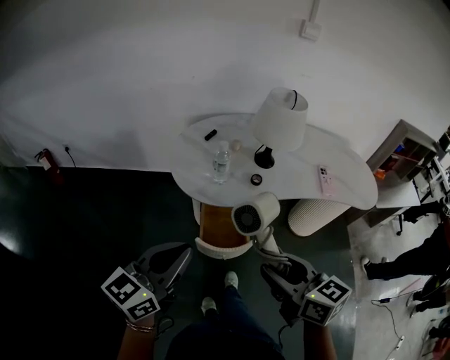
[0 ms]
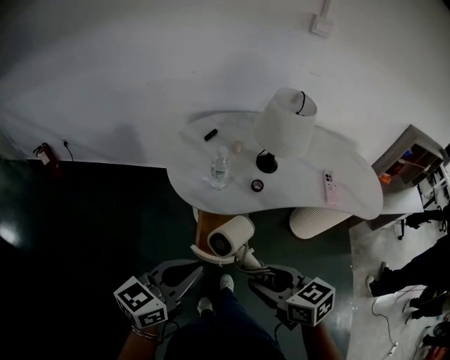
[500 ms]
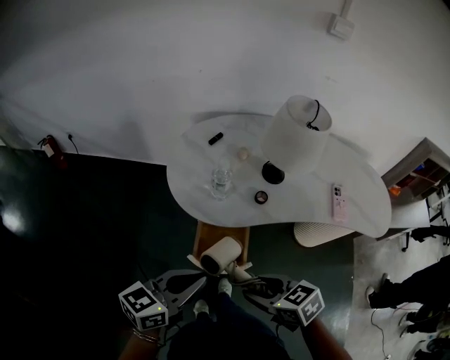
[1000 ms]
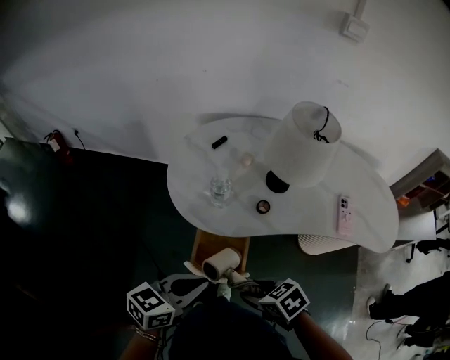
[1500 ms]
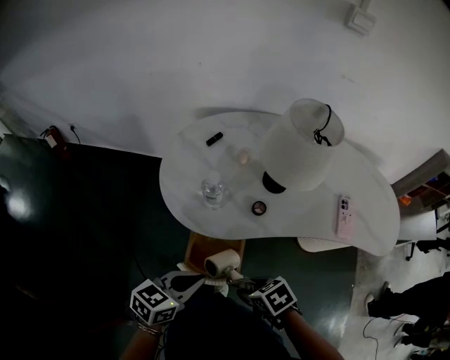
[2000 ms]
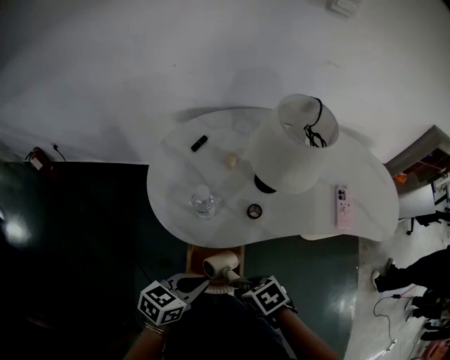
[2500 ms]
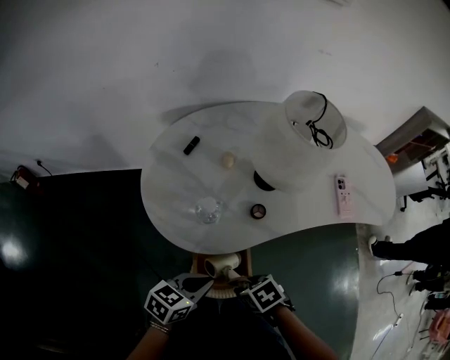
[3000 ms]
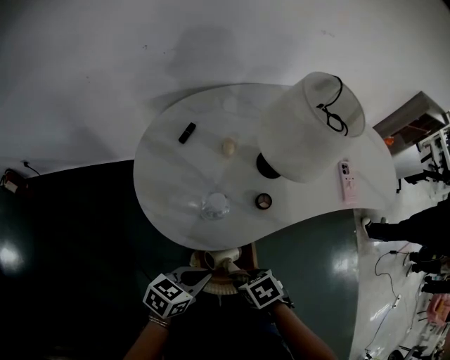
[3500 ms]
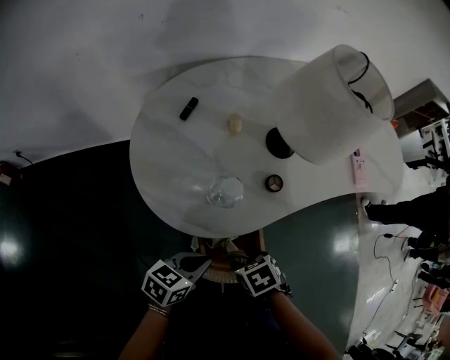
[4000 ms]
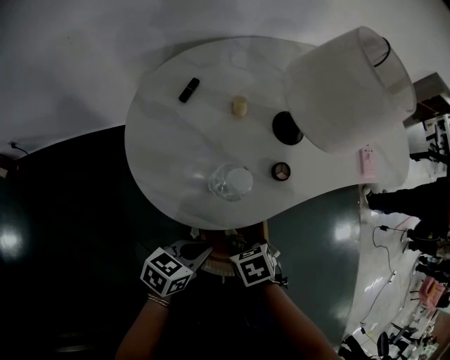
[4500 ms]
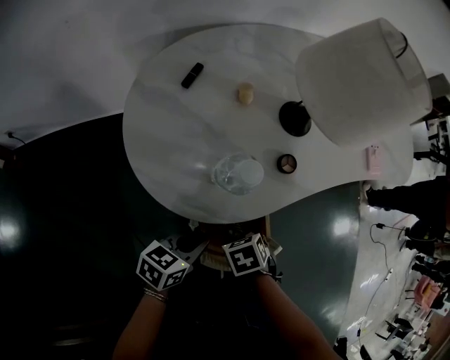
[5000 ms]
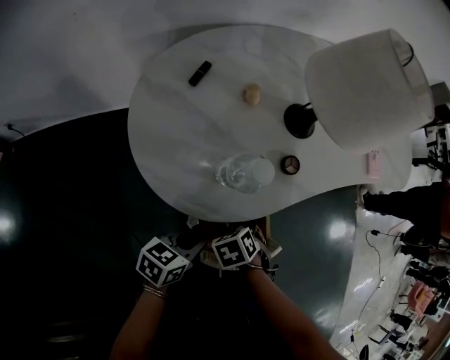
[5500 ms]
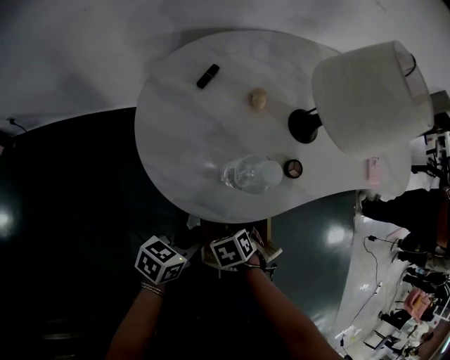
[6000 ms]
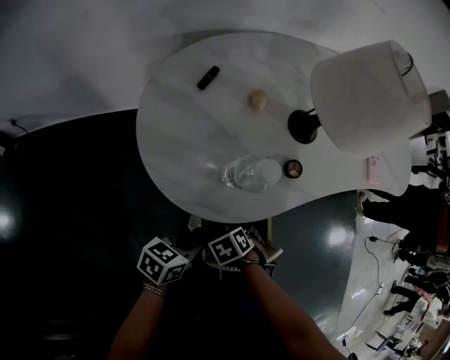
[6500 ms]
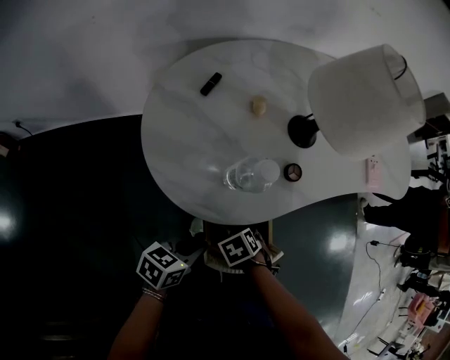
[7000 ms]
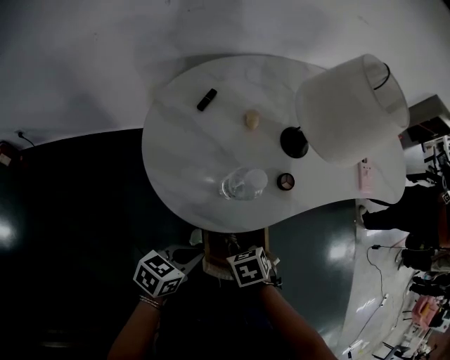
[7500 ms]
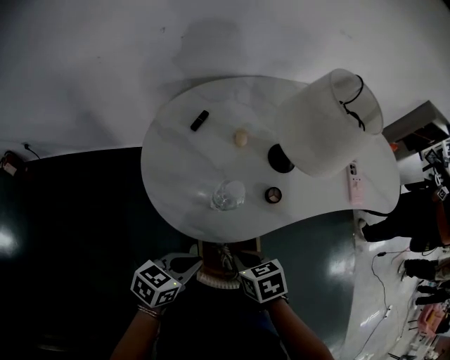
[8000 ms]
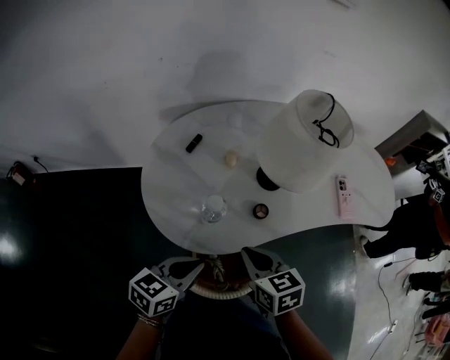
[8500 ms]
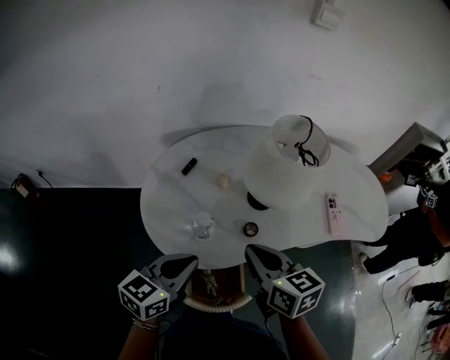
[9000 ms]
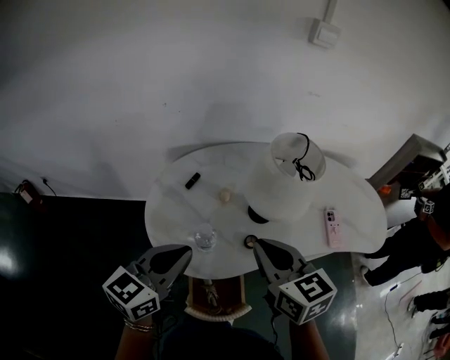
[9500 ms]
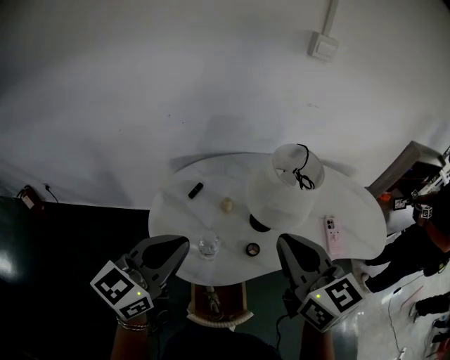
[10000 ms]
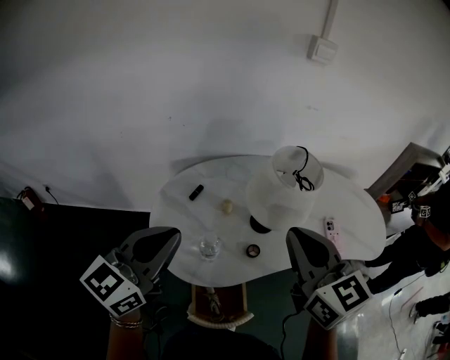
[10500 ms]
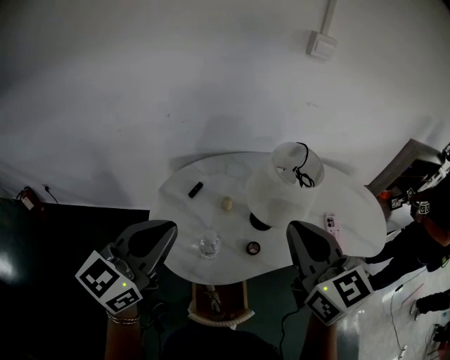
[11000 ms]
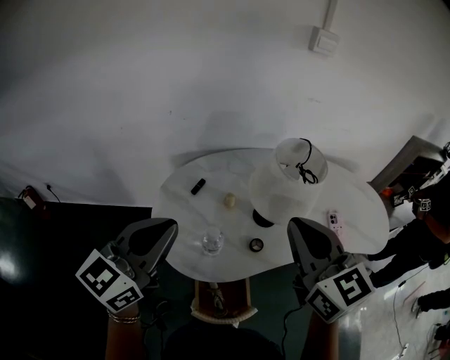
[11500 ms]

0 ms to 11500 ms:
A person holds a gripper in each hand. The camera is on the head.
0 ms to 2000 ms: Both grippers move downward, approximately 20 cm. The right gripper tips its fingers downward by approximately 40 degrees; the left gripper rotates some 30 degrees.
2000 ms to 4000 ms: The left gripper travels downward by some 10 cm, and turns by about 30 degrees, while the right gripper moves roughly 15 cm, and swivels roughly 30 degrees.
4000 ms to 6000 ms: The left gripper shifts by some 5 cm, while the right gripper heads downward, covering roughly 10 cm.
6000 ms to 7500 ms: The right gripper travels upward by about 5 cm, and closes.
7500 ms to 9500 ms: Both grippers travel together upward, some 35 cm. The left gripper turns by some 40 degrees; the right gripper tilts its fingers roughly 60 degrees upward.
9500 ms to 11500 ms: The two grippers go some 10 cm upward.

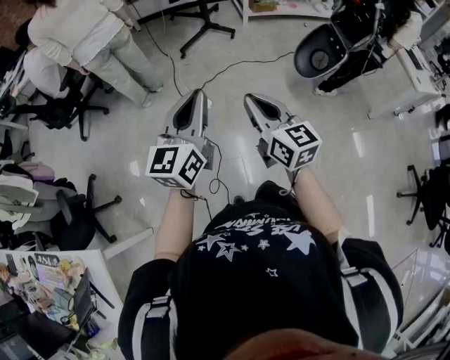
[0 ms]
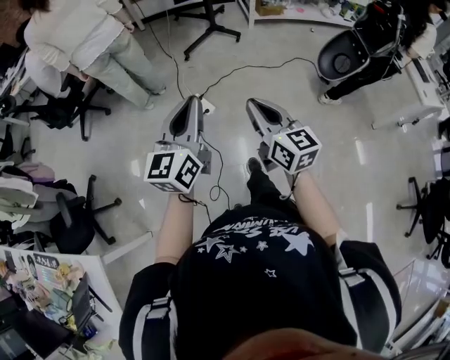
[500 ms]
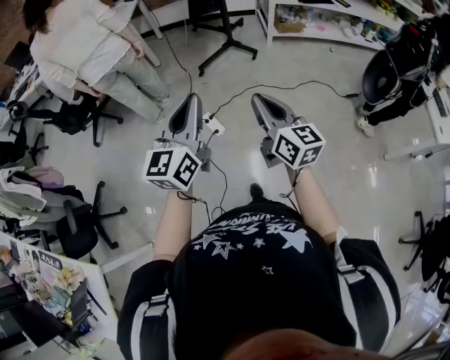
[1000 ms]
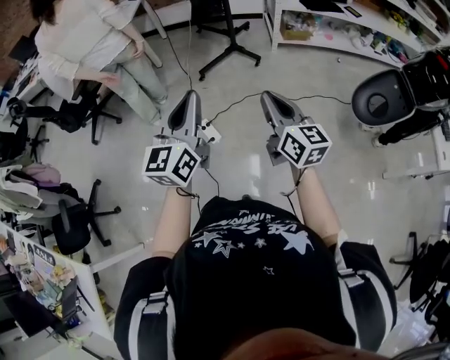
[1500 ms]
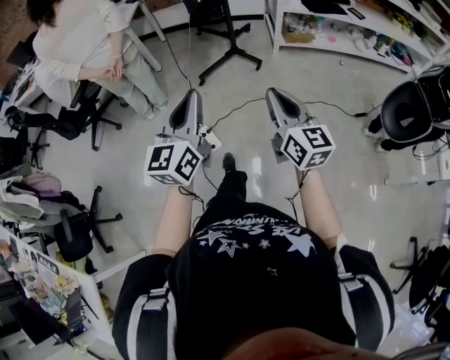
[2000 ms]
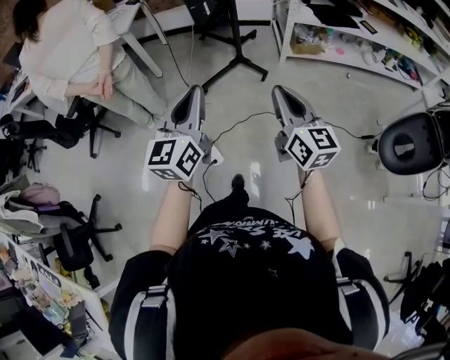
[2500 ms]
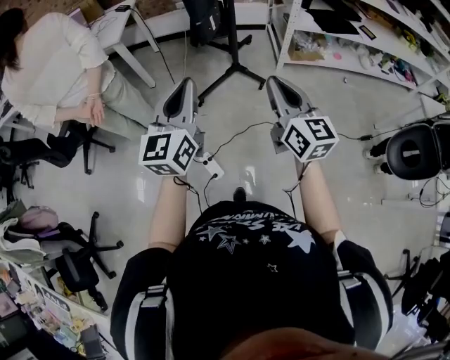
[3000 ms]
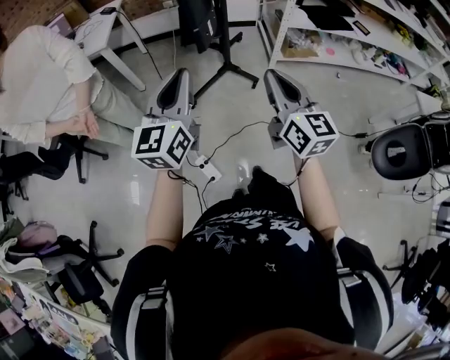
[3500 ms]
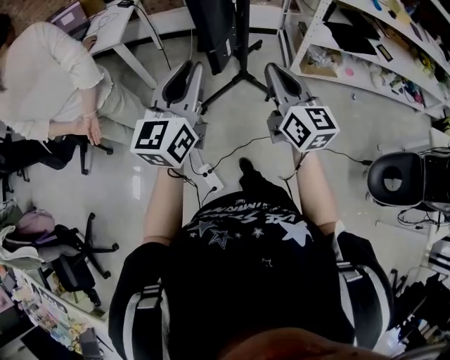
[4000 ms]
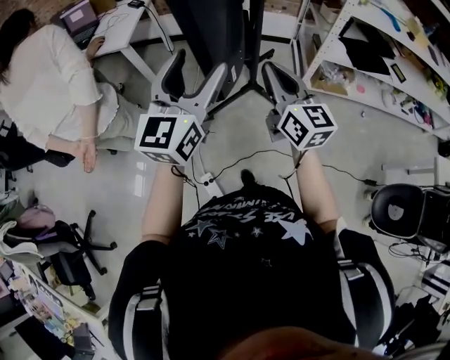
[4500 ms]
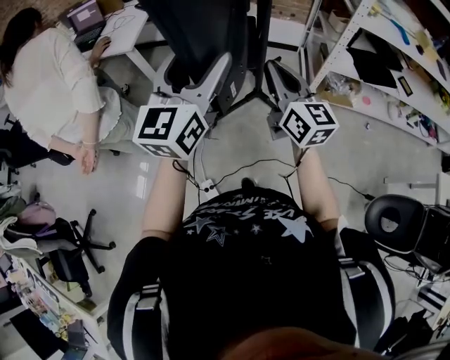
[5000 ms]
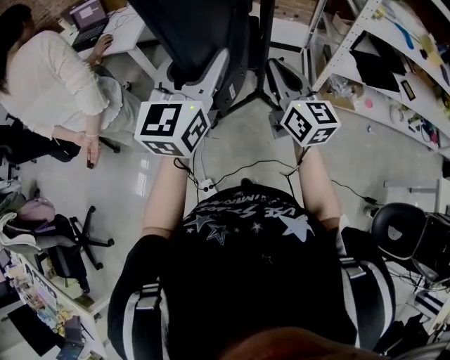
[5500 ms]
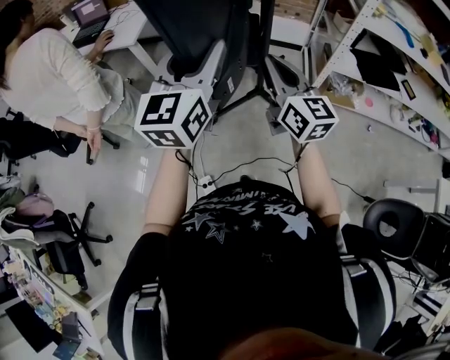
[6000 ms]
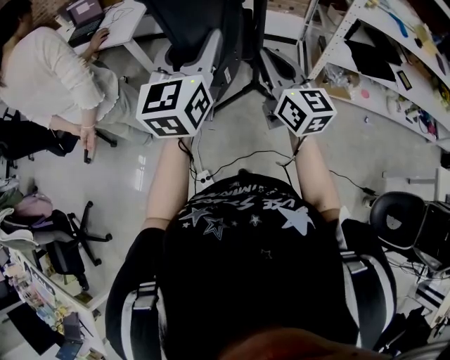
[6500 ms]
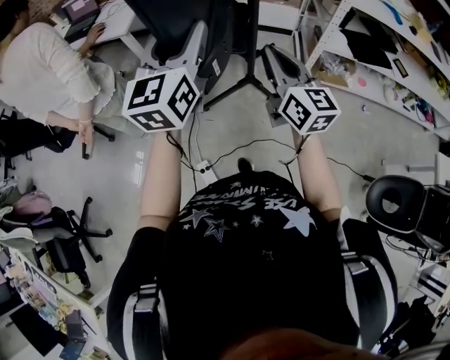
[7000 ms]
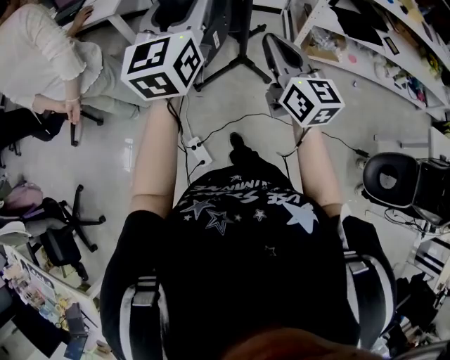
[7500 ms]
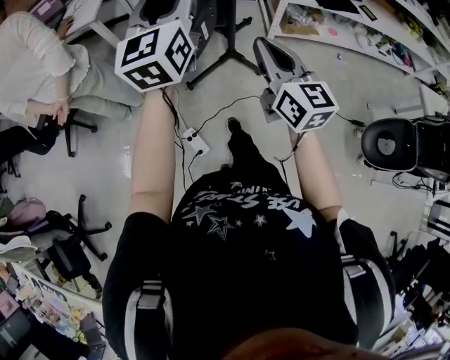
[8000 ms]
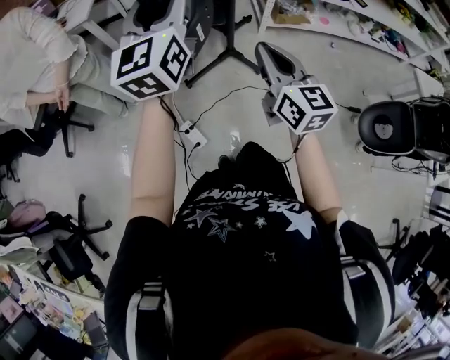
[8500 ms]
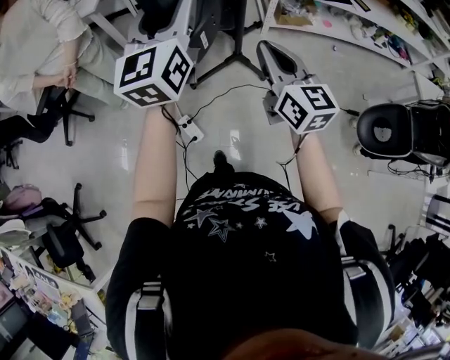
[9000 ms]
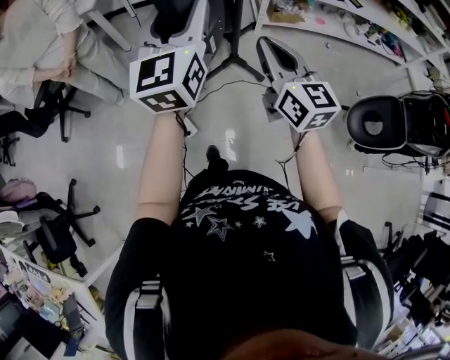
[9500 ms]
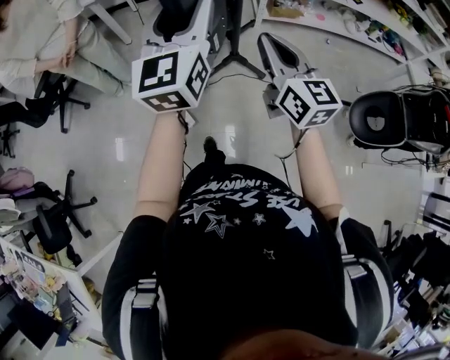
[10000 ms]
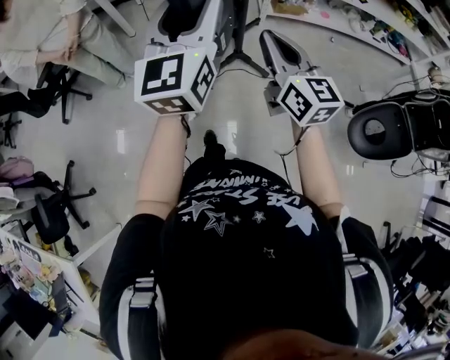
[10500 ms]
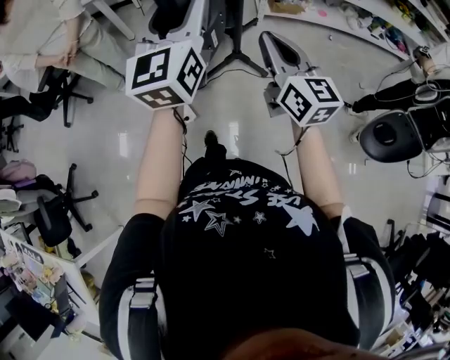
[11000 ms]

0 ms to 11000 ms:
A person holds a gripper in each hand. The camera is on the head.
0 ms to 2000 ms: The right gripper travels forward and to the right by approximately 40 cm. Meanwhile the left gripper goes approximately 30 cm forward.
2000 ms to 3500 ms: The grippers both shift forward by approximately 30 cm.
3500 ms to 5500 ms: Both grippers move forward, some 25 cm. The left gripper opens its fingers.
5500 ms to 7500 ms: The right gripper shifts roughly 15 cm backward. Meanwhile the left gripper is displaced backward by about 10 cm.
7500 ms to 9000 ms: Both grippers travel together backward, roughly 20 cm.
9000 ms to 11000 ms: The grippers both shift backward and to the right by about 15 cm.

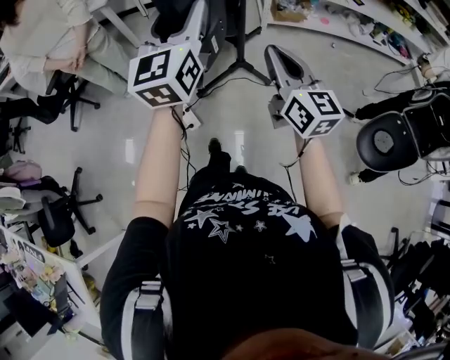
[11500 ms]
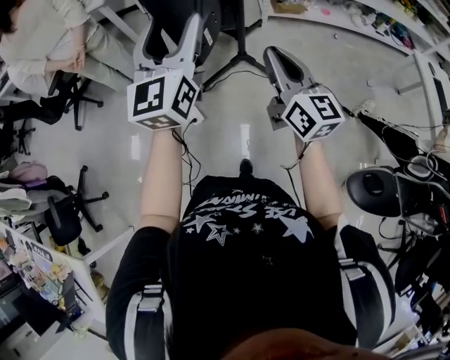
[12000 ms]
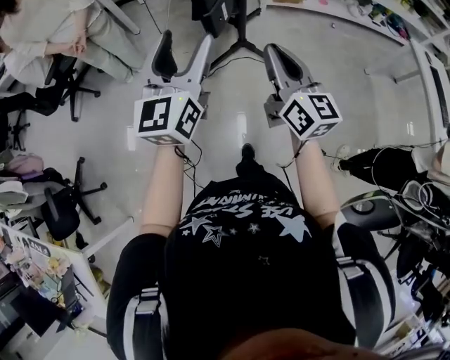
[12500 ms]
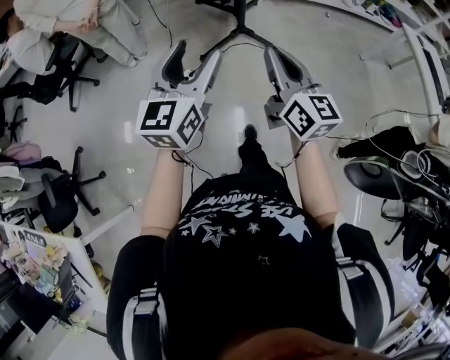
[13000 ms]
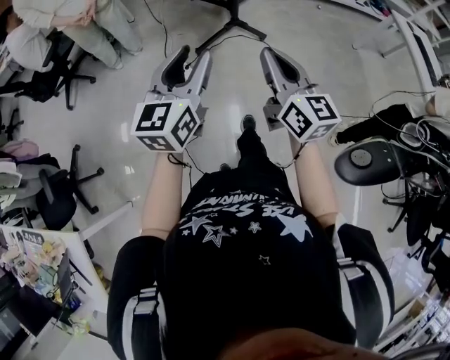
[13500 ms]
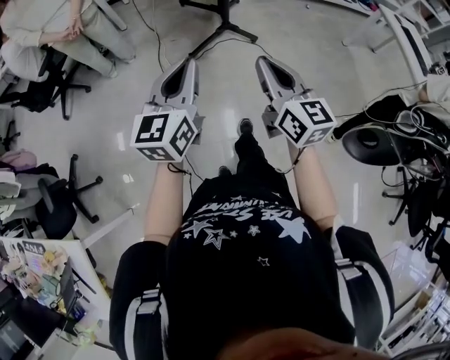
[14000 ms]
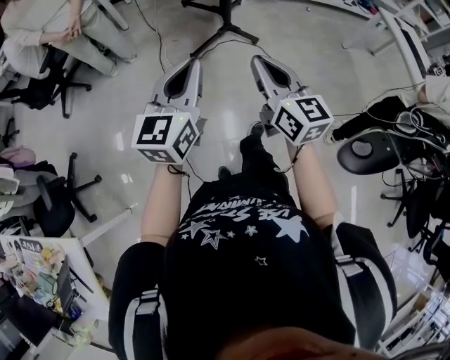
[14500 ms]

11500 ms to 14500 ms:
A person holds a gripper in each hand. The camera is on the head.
11500 ms to 13000 ms: The left gripper heads backward and downward, covering about 25 cm; the right gripper travels backward and to the left by approximately 25 cm.
13000 ms to 14500 ms: The two grippers go some 10 cm backward. The left gripper closes.

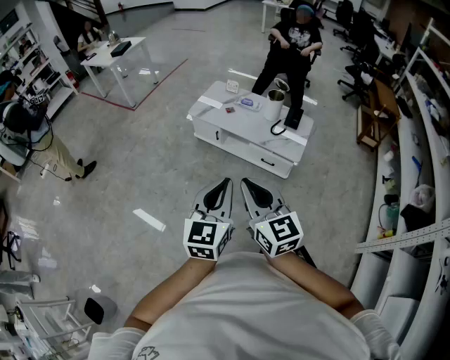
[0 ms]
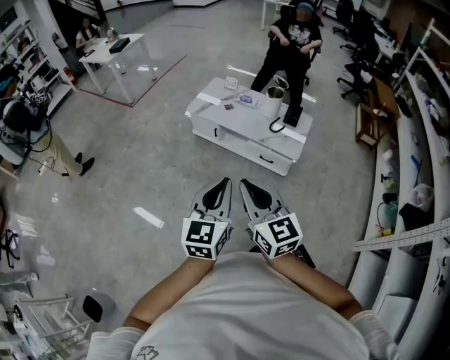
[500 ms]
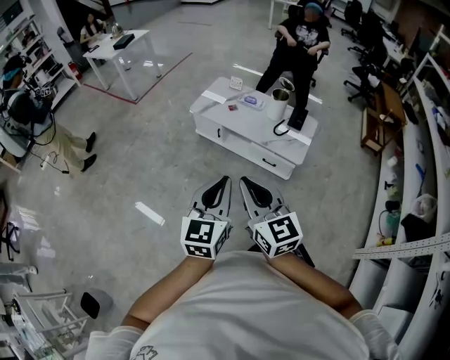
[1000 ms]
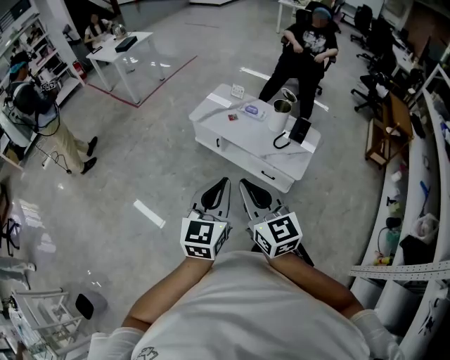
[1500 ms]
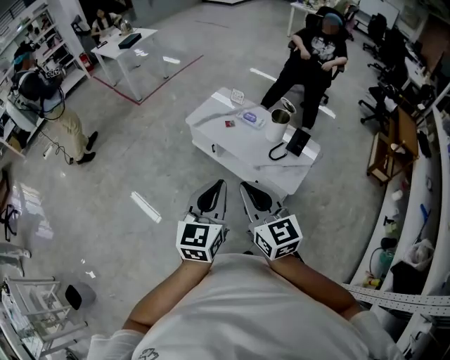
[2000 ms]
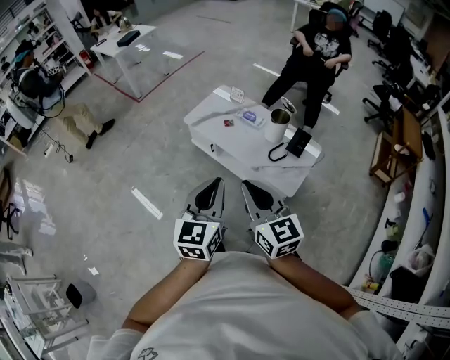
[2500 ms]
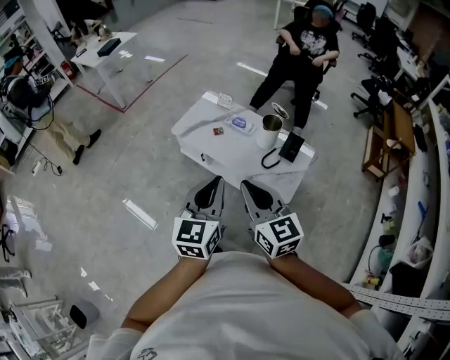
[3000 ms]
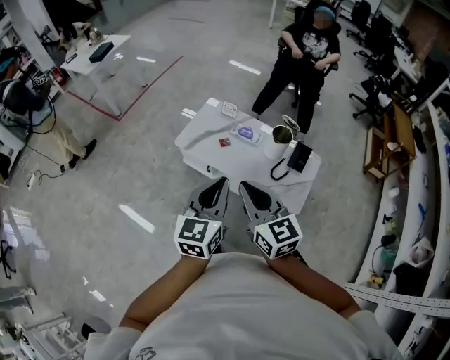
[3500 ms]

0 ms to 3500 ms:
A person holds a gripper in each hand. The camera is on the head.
0 ms to 2000 ms: Both grippers move forward and to the right, roughly 25 cm.
2000 ms to 3500 ms: The grippers both shift forward by about 25 cm.
